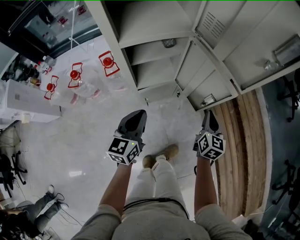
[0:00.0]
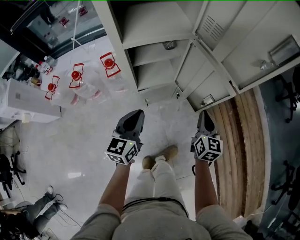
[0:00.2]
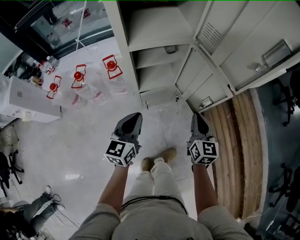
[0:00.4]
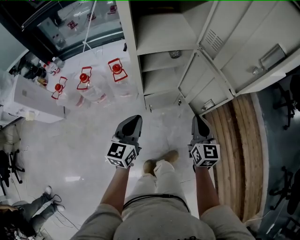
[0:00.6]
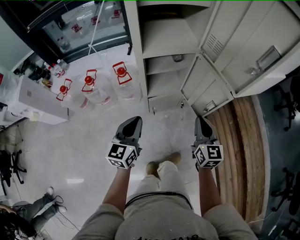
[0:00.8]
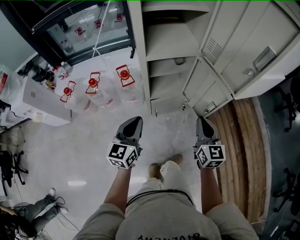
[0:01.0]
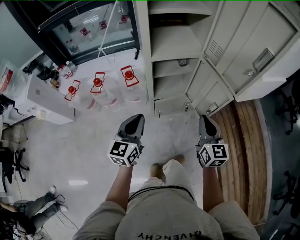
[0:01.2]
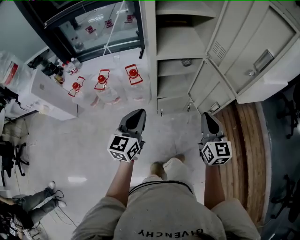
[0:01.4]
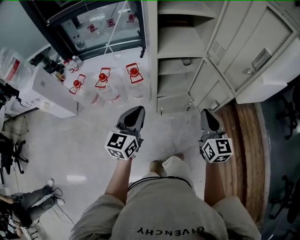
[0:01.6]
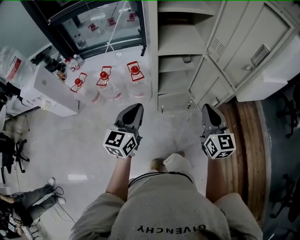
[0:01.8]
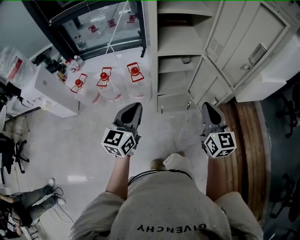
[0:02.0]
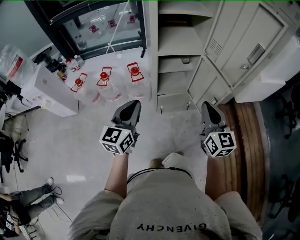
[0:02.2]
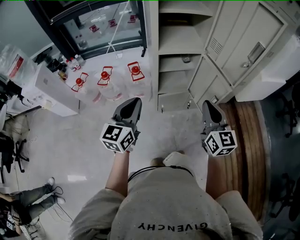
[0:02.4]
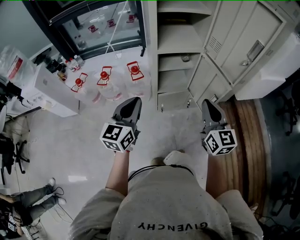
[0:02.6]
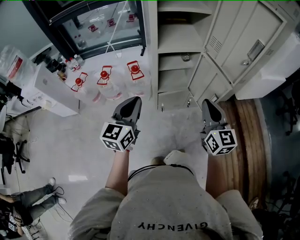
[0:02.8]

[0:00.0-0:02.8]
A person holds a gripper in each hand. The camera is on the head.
0:00.0 to 0:01.4: Both grippers move upward, to the left and backward, approximately 20 cm. The right gripper rotates approximately 30 degrees.
0:01.4 to 0:02.8: The right gripper heads upward, covering some 5 cm; the left gripper ends up approximately 5 cm from where it was.

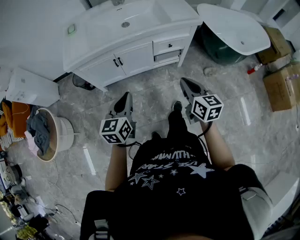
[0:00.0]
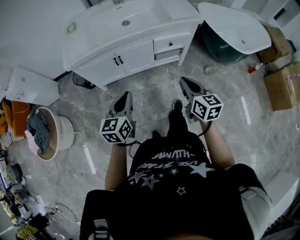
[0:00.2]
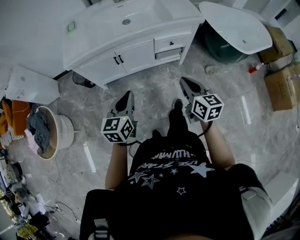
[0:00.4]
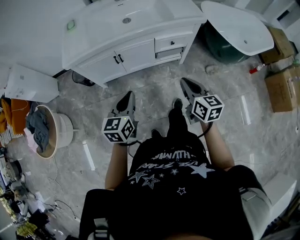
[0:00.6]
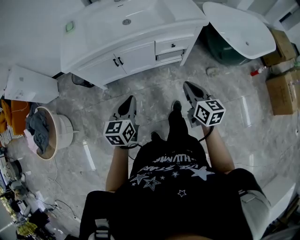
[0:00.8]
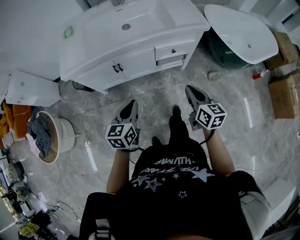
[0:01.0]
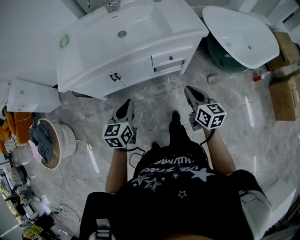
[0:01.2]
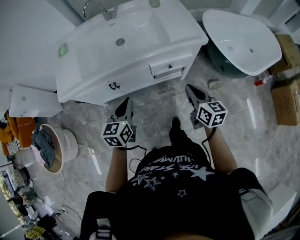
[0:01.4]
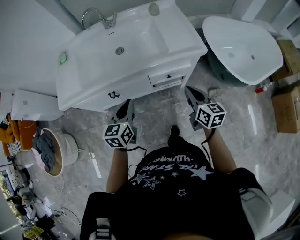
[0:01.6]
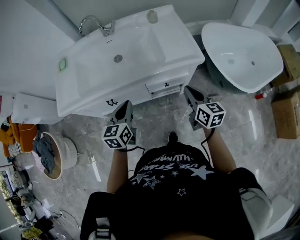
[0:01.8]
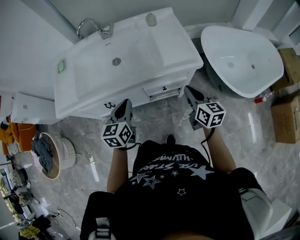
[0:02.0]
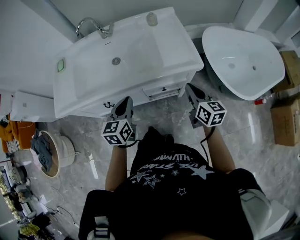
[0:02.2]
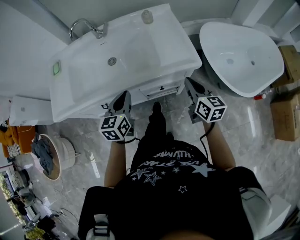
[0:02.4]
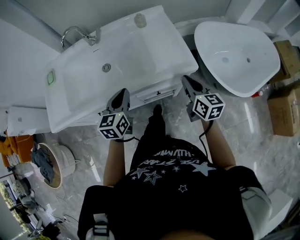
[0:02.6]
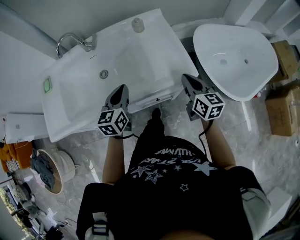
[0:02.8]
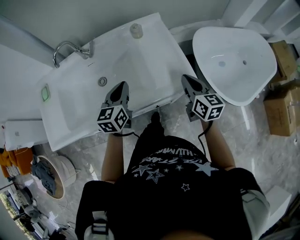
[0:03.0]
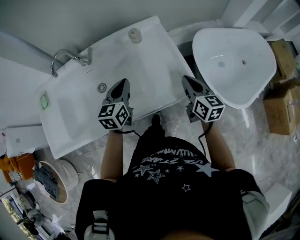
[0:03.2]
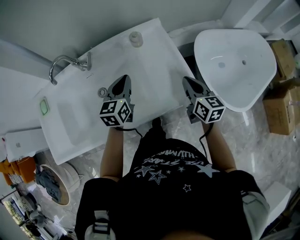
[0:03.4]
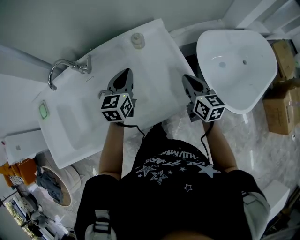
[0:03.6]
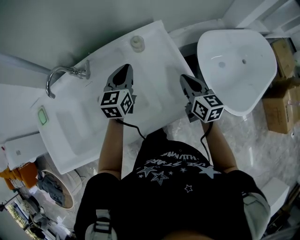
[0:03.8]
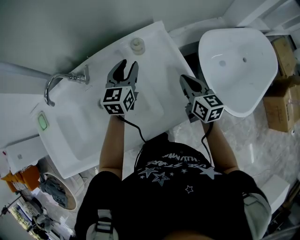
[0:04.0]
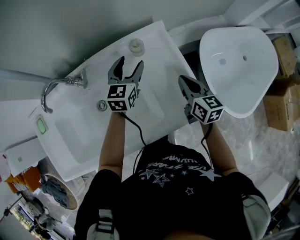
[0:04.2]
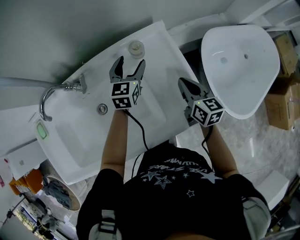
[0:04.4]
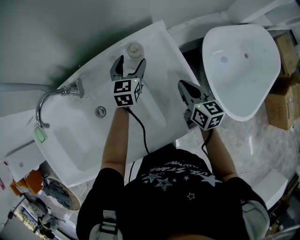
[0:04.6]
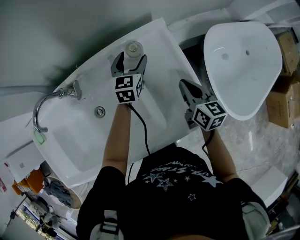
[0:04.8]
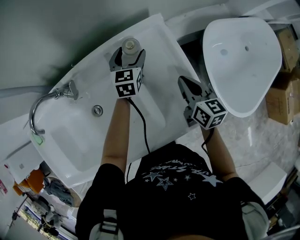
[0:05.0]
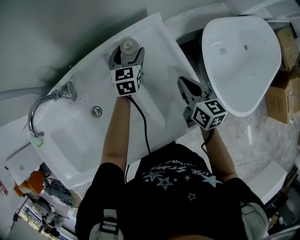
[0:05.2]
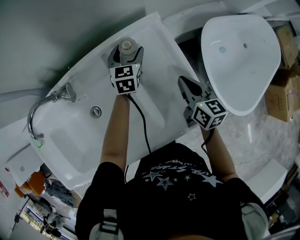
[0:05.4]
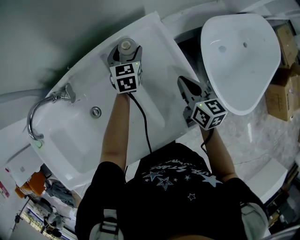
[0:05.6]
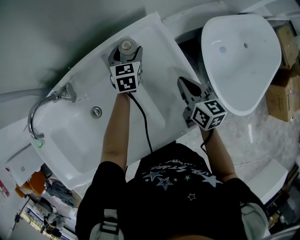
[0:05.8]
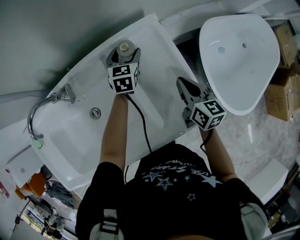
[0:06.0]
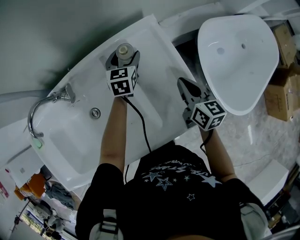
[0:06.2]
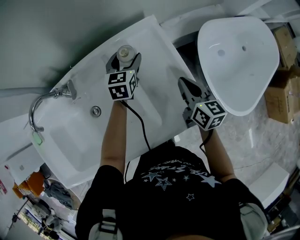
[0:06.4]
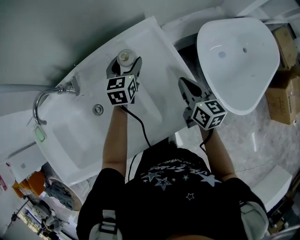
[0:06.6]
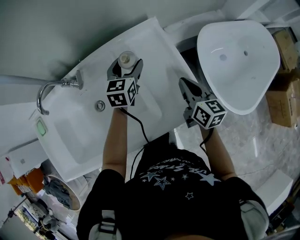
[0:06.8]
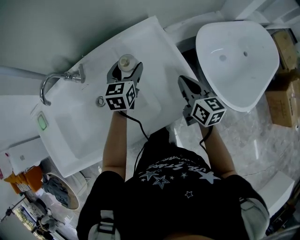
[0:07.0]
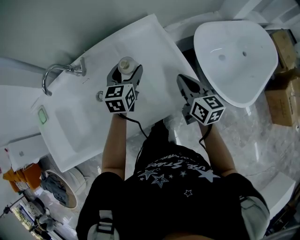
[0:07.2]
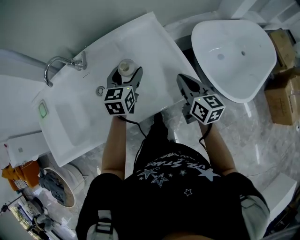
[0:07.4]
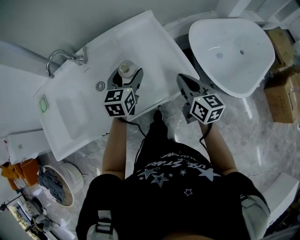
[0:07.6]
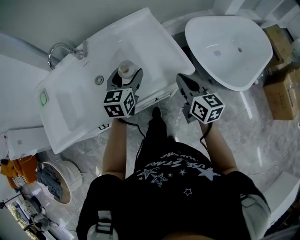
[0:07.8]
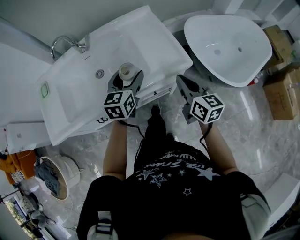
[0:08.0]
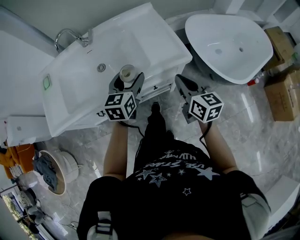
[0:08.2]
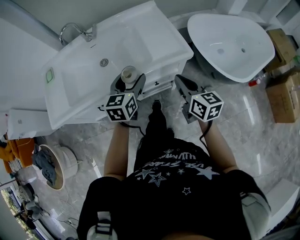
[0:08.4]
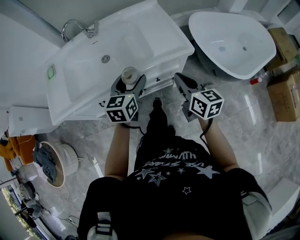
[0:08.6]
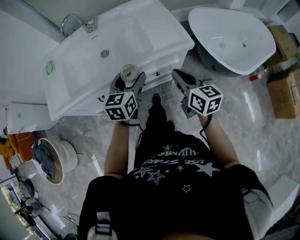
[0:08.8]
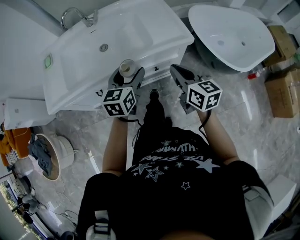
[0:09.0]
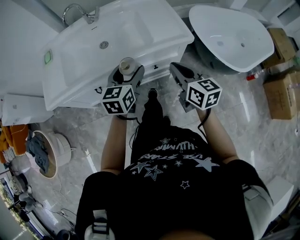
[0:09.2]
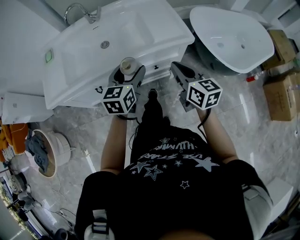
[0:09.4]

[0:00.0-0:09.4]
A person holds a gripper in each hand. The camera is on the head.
0:00.0 to 0:01.6: Both grippers move forward and to the right, some 30 cm.
0:01.6 to 0:03.2: The two grippers go about 30 cm forward.
0:03.2 to 0:04.8: The right gripper shifts roughly 20 cm forward and downward; the left gripper goes roughly 30 cm forward, and opens its fingers.
0:04.8 to 0:06.2: The grippers make only small movements.
0:06.2 to 0:07.8: The right gripper heads backward, covering roughly 25 cm; the left gripper goes some 40 cm backward and upward.
0:07.8 to 0:09.4: Both grippers move backward, about 20 cm.

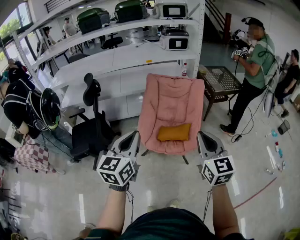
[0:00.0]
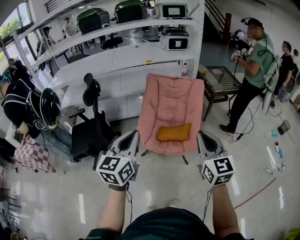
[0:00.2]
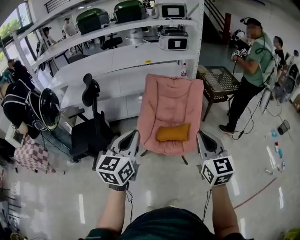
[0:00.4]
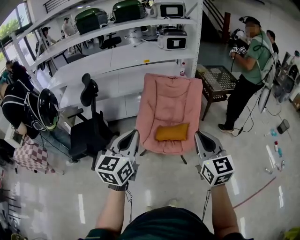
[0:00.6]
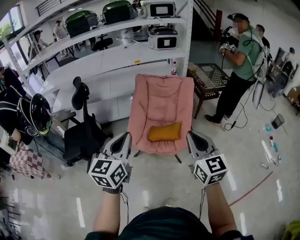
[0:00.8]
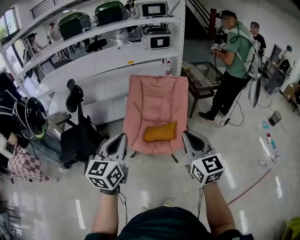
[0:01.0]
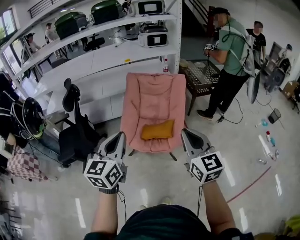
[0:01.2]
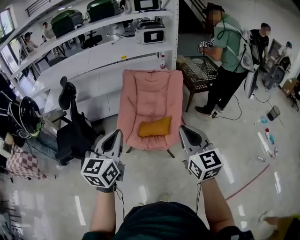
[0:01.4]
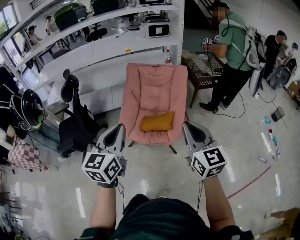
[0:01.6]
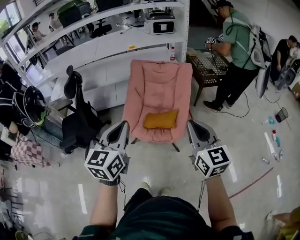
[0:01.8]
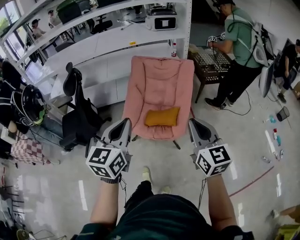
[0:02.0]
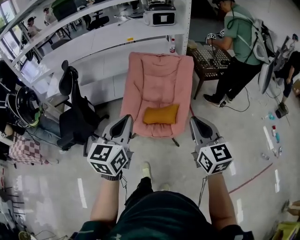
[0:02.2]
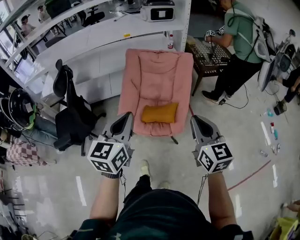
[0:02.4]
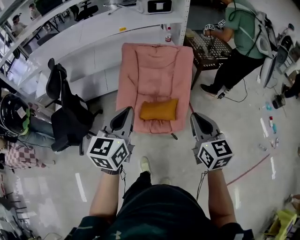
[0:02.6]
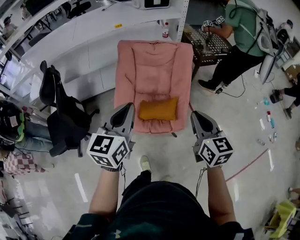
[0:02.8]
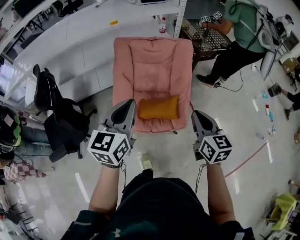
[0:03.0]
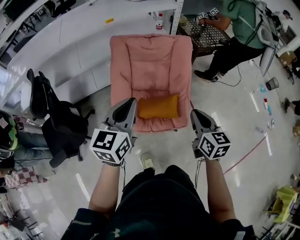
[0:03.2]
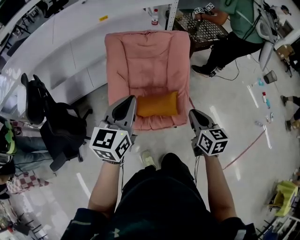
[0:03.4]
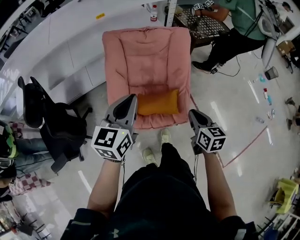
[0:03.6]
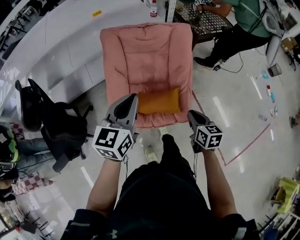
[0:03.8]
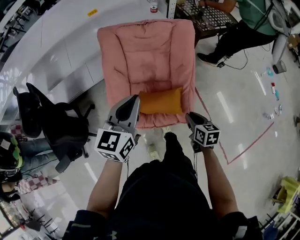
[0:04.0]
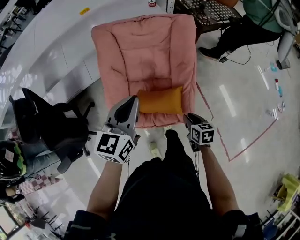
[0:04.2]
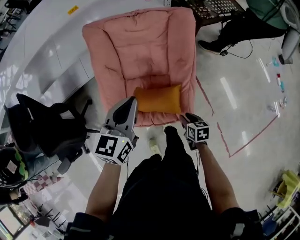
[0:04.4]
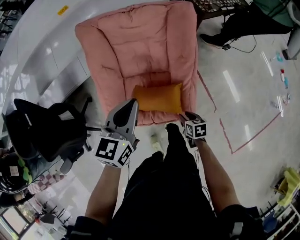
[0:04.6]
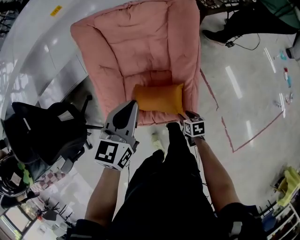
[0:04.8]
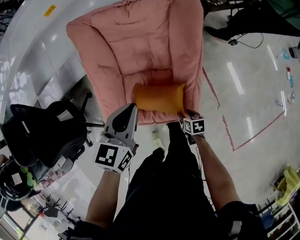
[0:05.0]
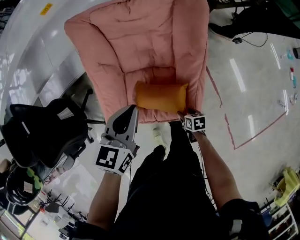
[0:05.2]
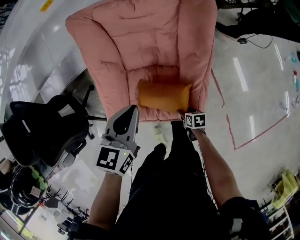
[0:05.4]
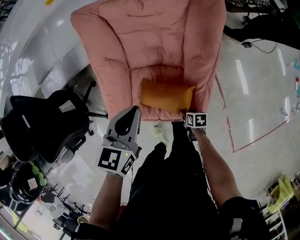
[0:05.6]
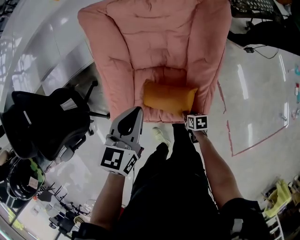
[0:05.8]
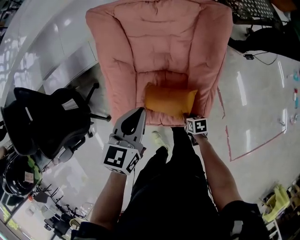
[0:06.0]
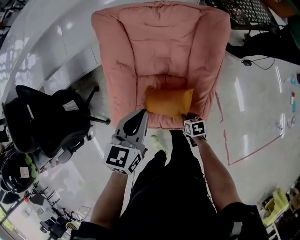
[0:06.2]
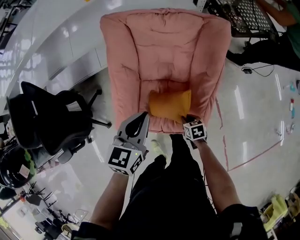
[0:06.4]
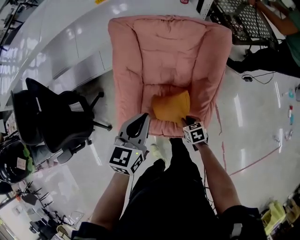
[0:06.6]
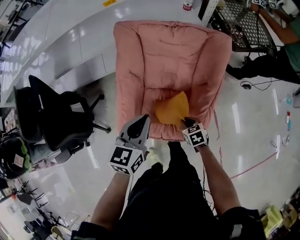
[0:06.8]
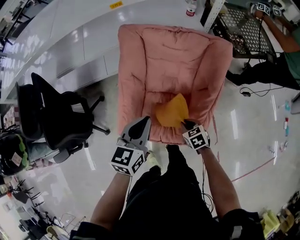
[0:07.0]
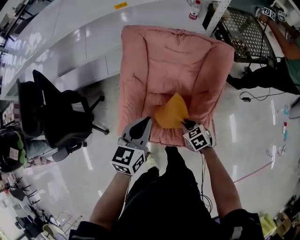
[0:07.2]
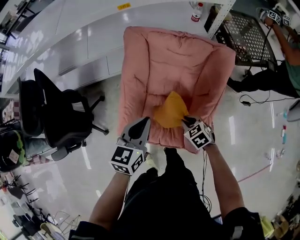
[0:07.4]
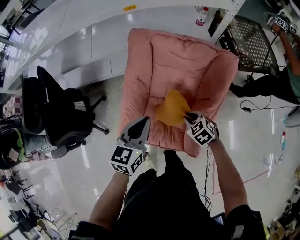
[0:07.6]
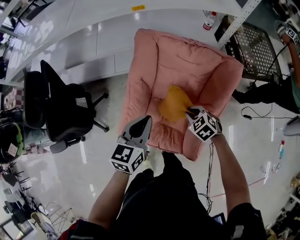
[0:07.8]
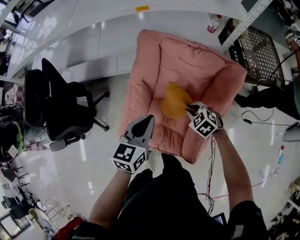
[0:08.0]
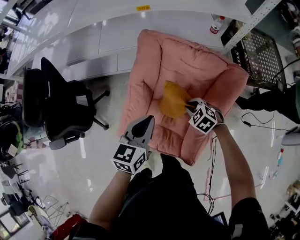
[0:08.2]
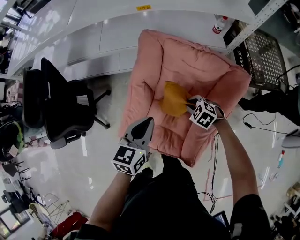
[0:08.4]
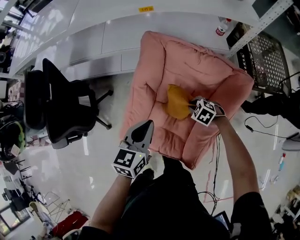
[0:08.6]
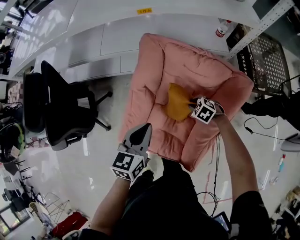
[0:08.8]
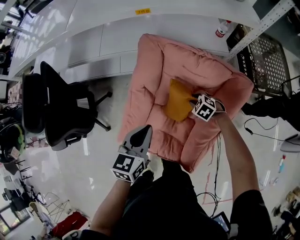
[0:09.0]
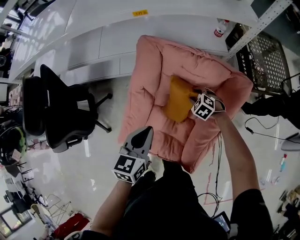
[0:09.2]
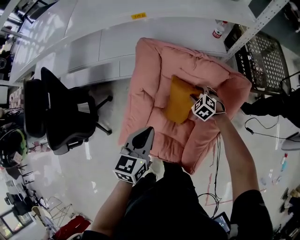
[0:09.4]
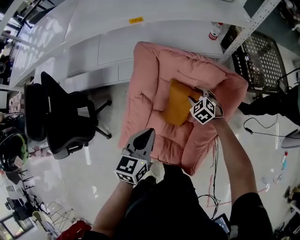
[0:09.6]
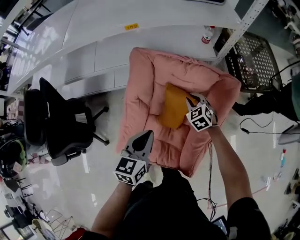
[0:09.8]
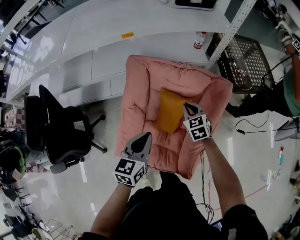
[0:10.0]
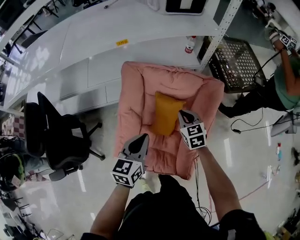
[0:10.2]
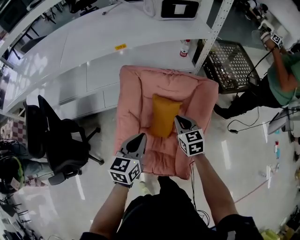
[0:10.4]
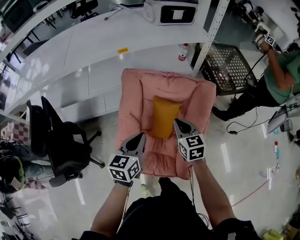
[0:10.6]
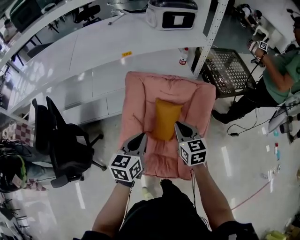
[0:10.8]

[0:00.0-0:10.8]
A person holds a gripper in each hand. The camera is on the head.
0:00.0 to 0:01.6: The two grippers go some 10 cm to the right.
0:01.6 to 0:03.0: The right gripper heads forward and downward, covering some 25 cm, and swivels approximately 20 degrees; the left gripper heads forward, covering about 25 cm.
0:03.0 to 0:04.6: The right gripper moves downward, about 40 cm, tips its fingers downward by some 40 degrees, and opens; the left gripper goes roughly 30 cm forward and downward.
0:04.6 to 0:06.2: The left gripper shifts roughly 5 cm downward, while the right gripper goes some 10 cm forward and downward, and opens, then closes again.
0:06.2 to 0:07.8: The right gripper goes some 25 cm upward and forward, and rotates around the line of its fingers by approximately 60 degrees, counterclockwise from behind. Meanwhile the left gripper moves to the left and upward, roughly 10 cm.
0:07.8 to 0:09.2: The left gripper moves roughly 5 cm; the right gripper travels forward, downward and to the right by approximately 20 cm, and opens its fingers.
0:09.2 to 0:10.8: The right gripper goes approximately 35 cm upward and backward, tips its fingers upward by roughly 40 degrees, and closes. Meanwhile the left gripper is displaced upward and backward by some 10 cm.
